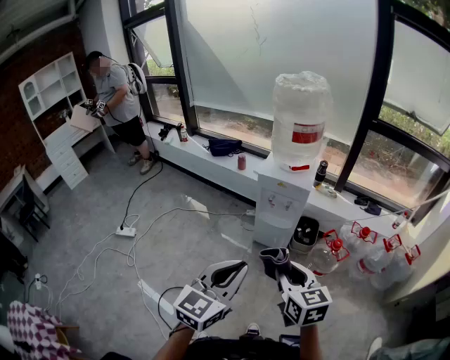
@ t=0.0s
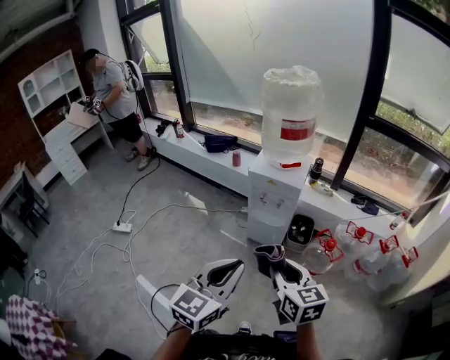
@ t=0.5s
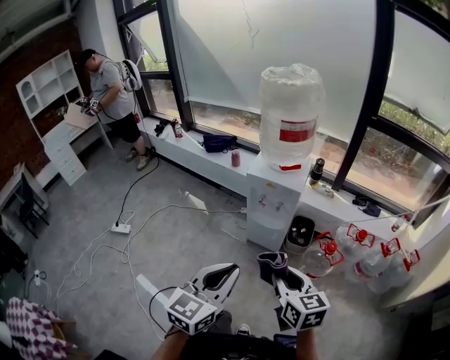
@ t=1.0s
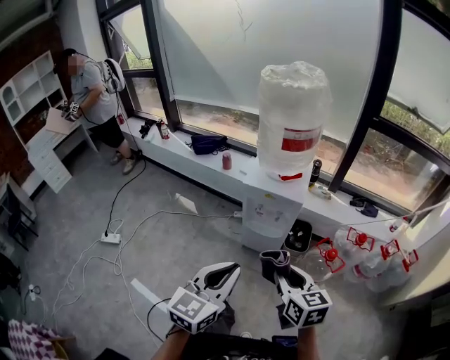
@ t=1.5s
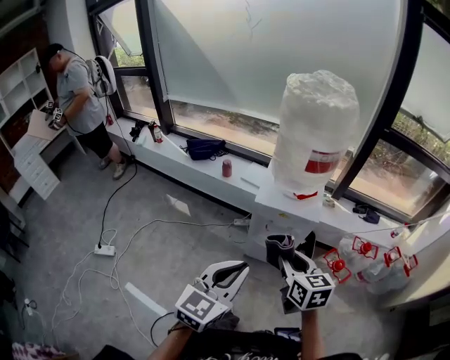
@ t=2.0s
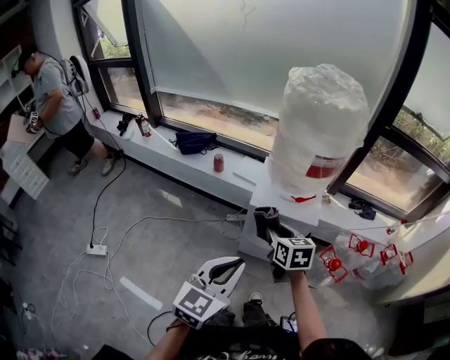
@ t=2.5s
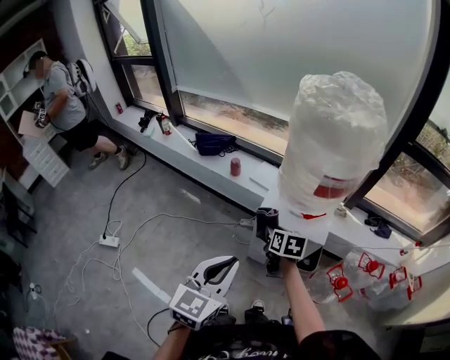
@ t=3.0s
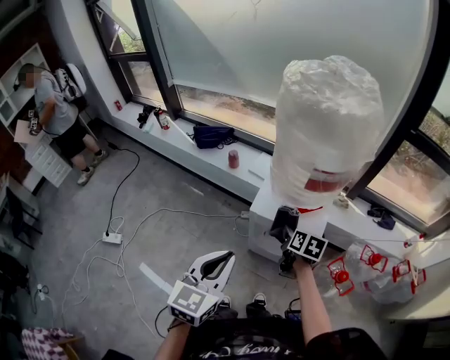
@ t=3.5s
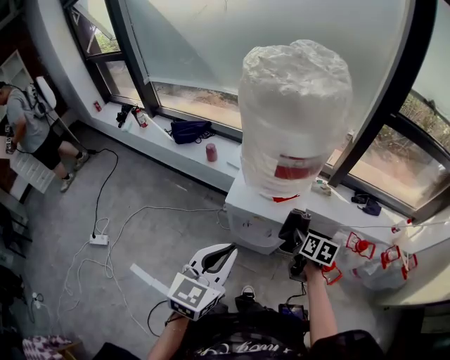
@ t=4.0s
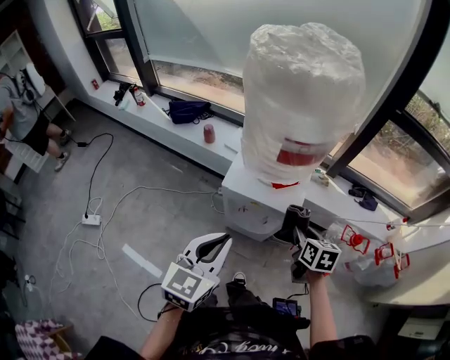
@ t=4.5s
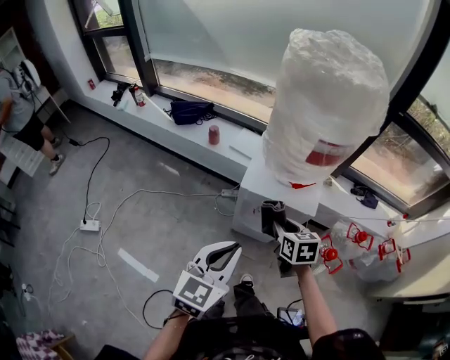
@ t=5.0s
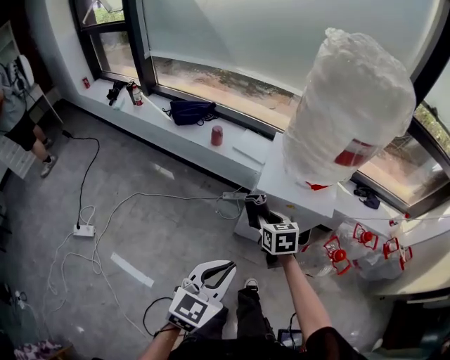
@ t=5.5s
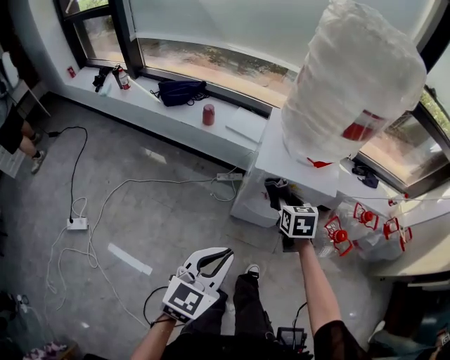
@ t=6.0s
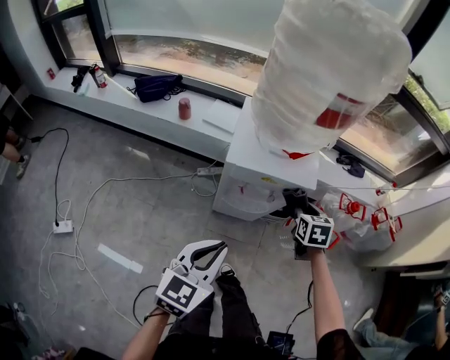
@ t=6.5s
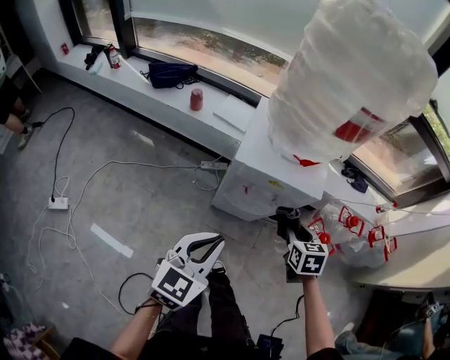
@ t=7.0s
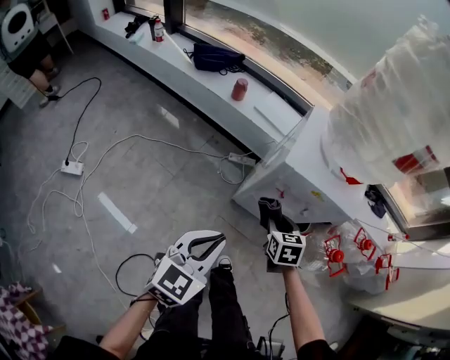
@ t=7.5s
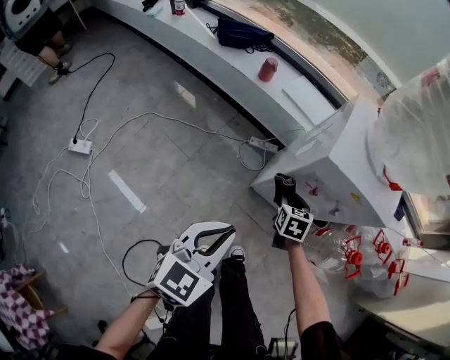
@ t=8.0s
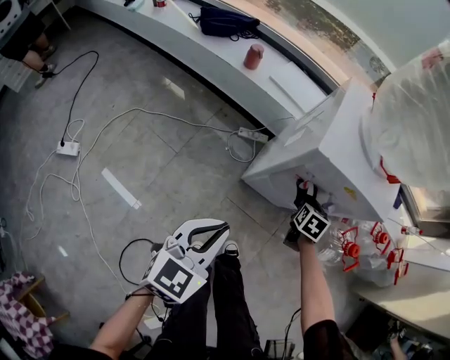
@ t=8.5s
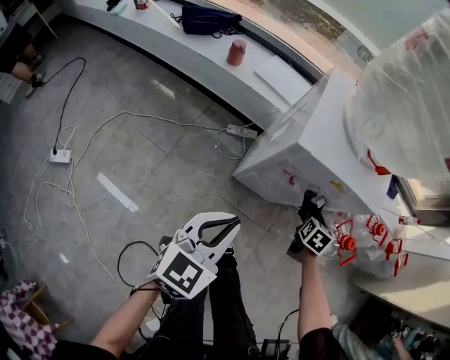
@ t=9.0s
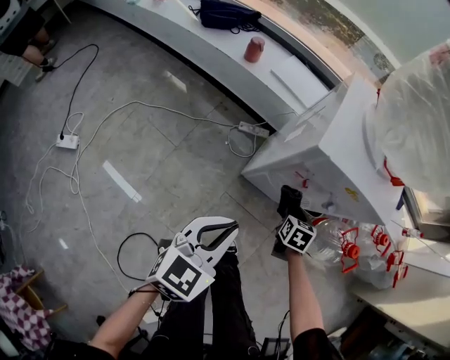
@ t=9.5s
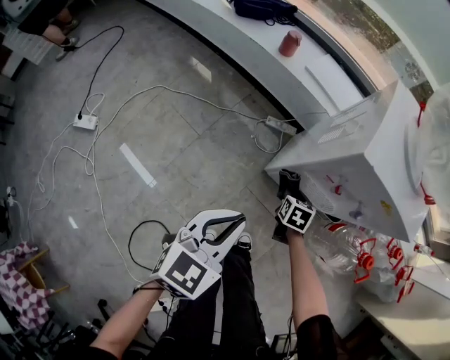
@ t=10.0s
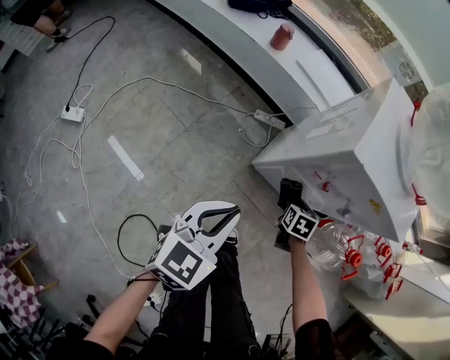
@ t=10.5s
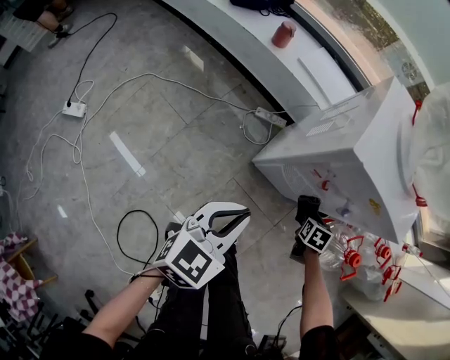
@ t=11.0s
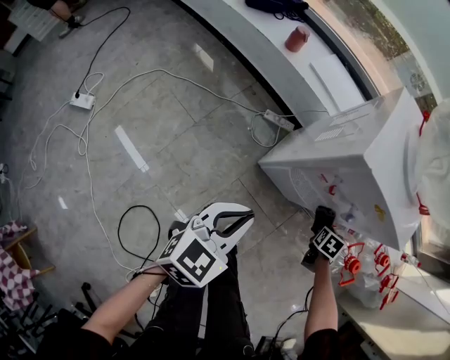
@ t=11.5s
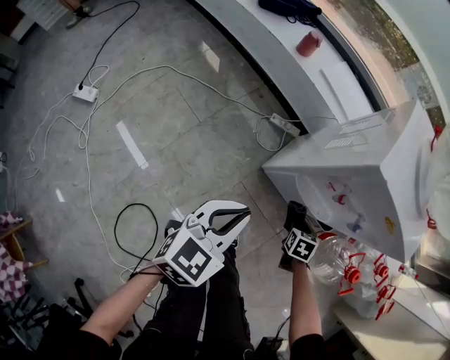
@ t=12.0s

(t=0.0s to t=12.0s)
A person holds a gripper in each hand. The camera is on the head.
t=0.0s - t=2.0s: The grippers both shift forward by about 30 cm.
t=2.0s - t=4.0s: The right gripper is displaced forward, to the right and downward by roughly 30 cm, and turns by roughly 30 degrees. Meanwhile the left gripper shifts roughly 15 cm forward and to the right.
t=4.0s - t=6.0s: The right gripper shifts approximately 20 cm to the left and downward, and turns by approximately 30 degrees, while the left gripper heads downward, to the left and backward, covering roughly 20 cm.
t=6.0s - t=8.0s: The left gripper travels downward and to the left by approximately 15 cm. Meanwhile the right gripper travels downward by approximately 20 cm, and moves about 15 cm to the right and comes back.
t=8.0s - t=10.0s: The left gripper is displaced downward by approximately 5 cm; the right gripper shifts roughly 10 cm downward, and moves some 20 cm to the right and comes back.
t=10.0s - t=12.0s: The right gripper heads to the right, covering some 10 cm.

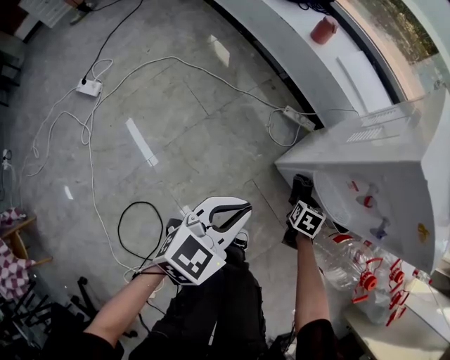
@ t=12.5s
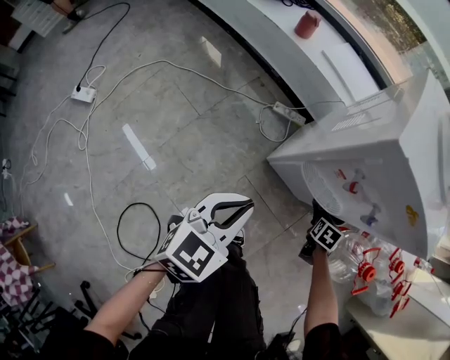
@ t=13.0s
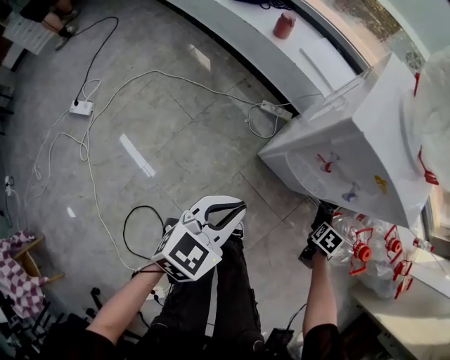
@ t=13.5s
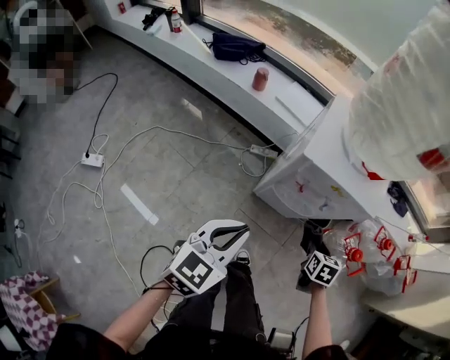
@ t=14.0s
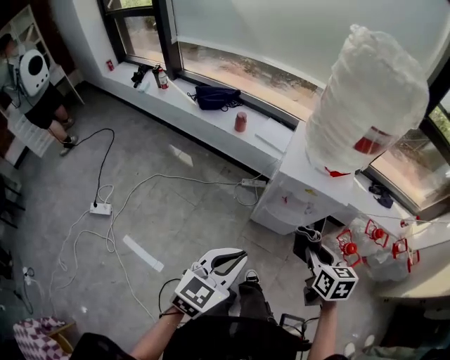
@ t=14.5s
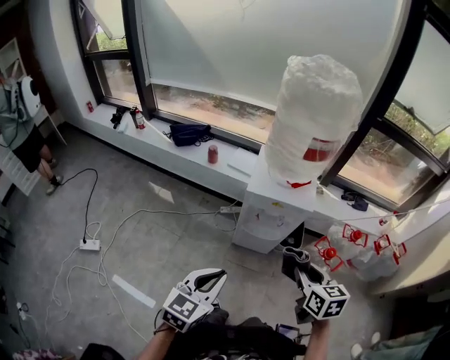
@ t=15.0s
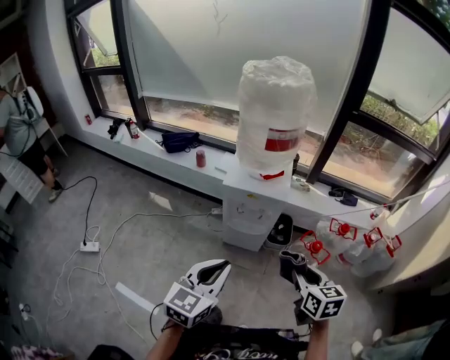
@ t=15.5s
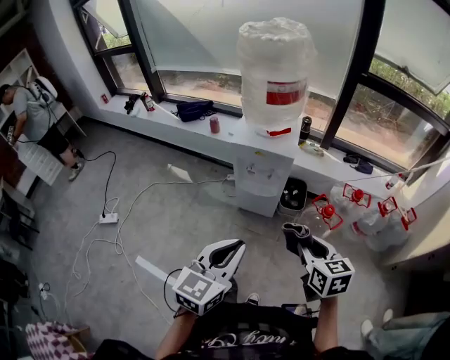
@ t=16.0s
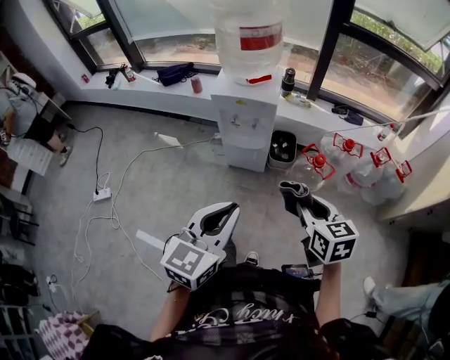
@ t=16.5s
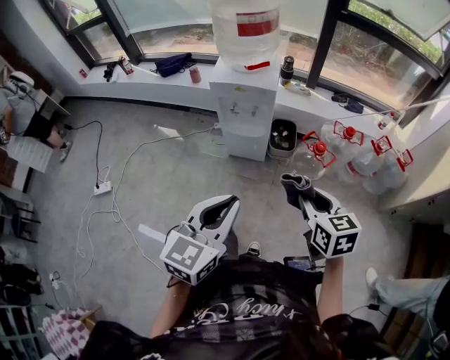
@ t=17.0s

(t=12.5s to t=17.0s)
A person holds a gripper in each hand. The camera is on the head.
t=12.5s - t=14.5s: The two grippers go some 40 cm upward. The right gripper changes its angle by approximately 30 degrees.
t=14.5s - t=17.0s: The right gripper shifts approximately 35 cm backward and to the right; the left gripper is displaced to the right and backward by approximately 35 cm.

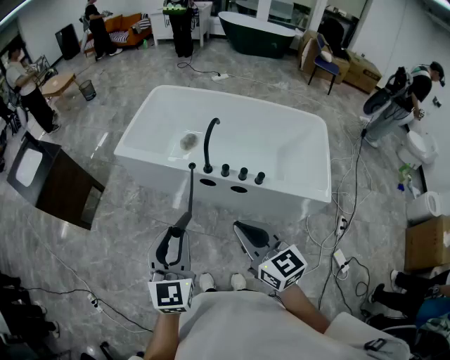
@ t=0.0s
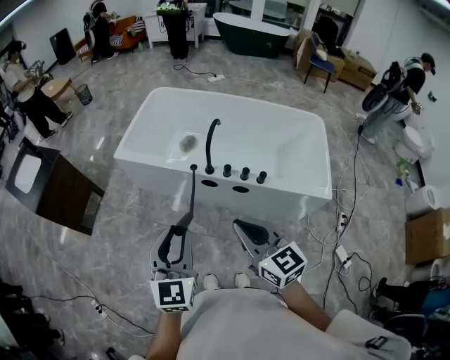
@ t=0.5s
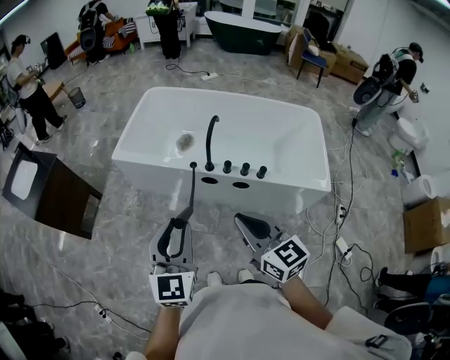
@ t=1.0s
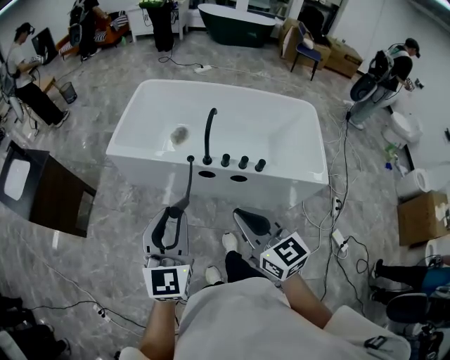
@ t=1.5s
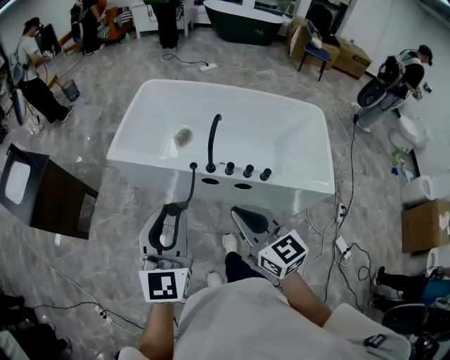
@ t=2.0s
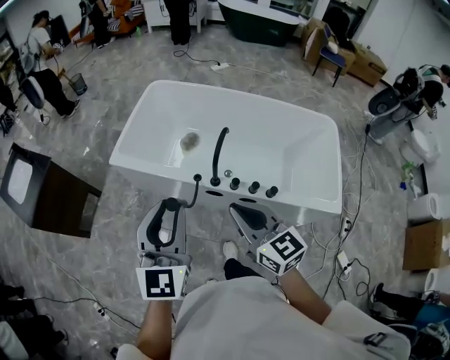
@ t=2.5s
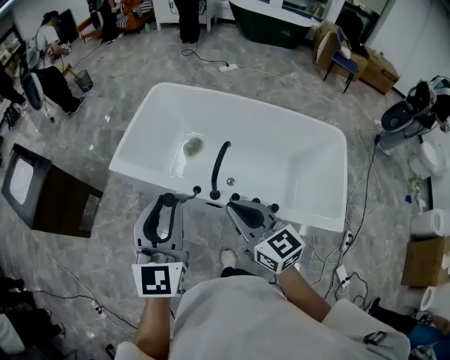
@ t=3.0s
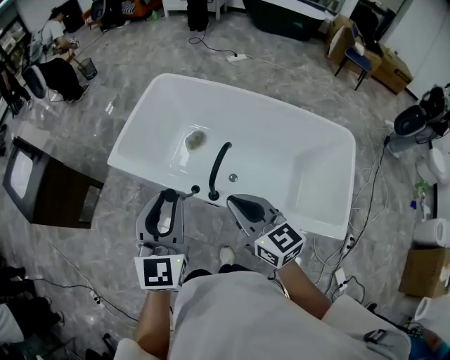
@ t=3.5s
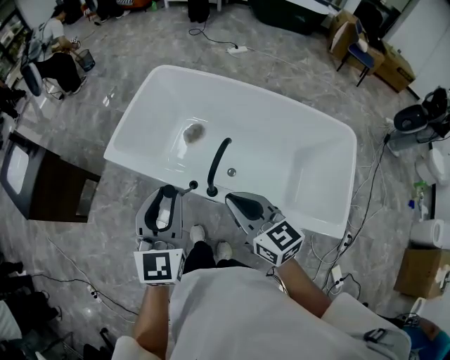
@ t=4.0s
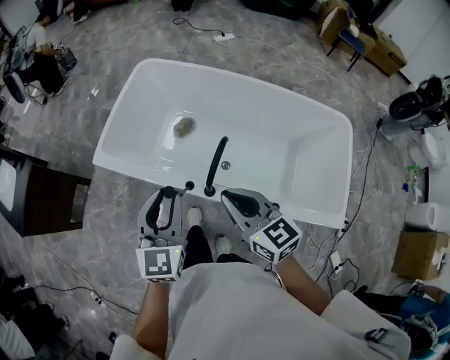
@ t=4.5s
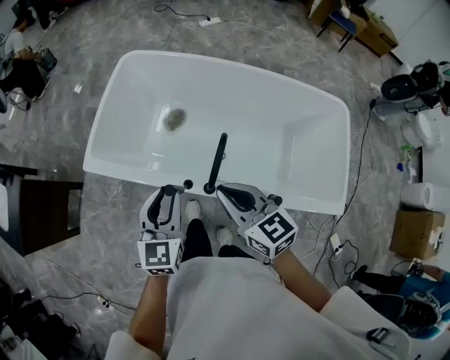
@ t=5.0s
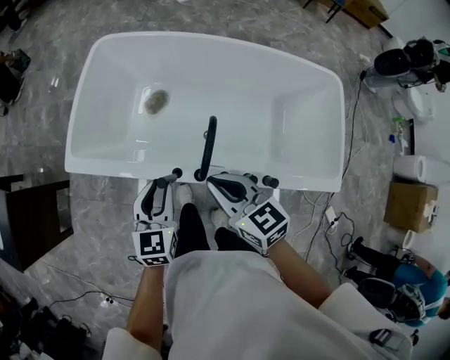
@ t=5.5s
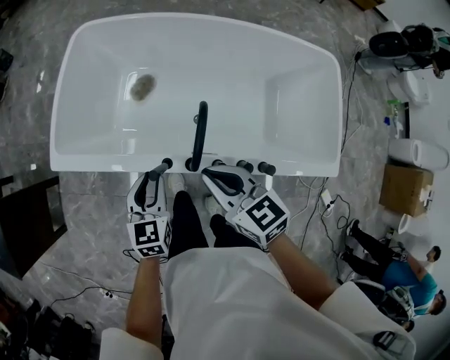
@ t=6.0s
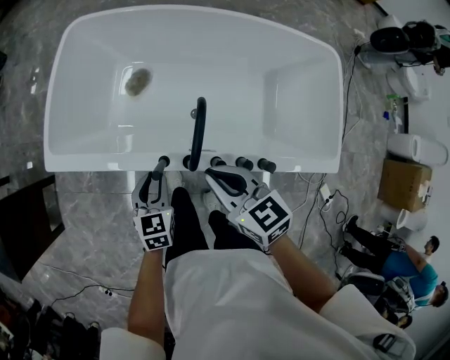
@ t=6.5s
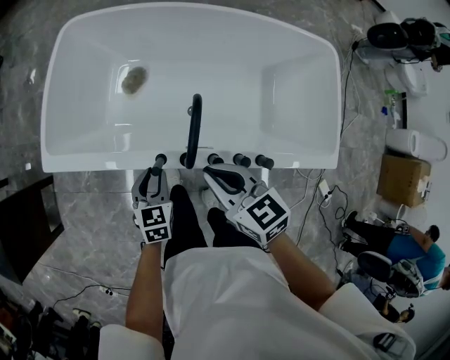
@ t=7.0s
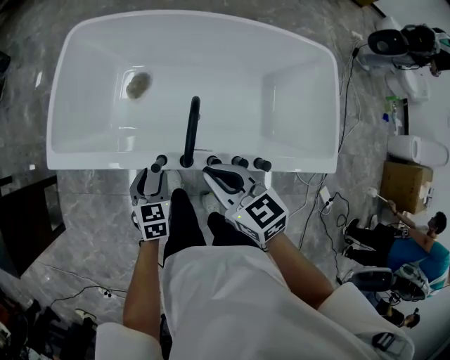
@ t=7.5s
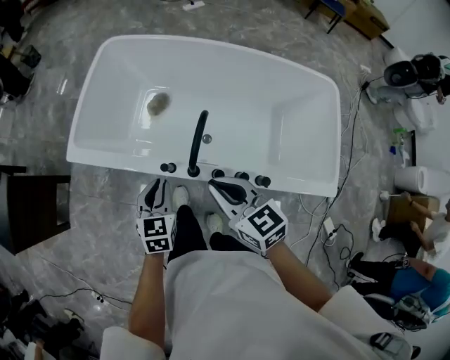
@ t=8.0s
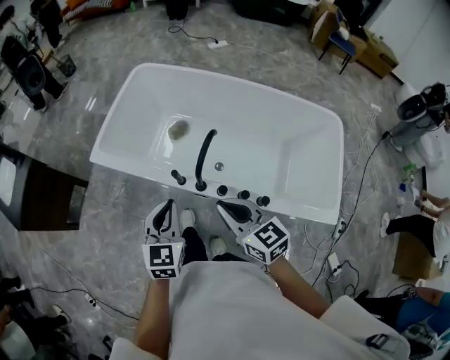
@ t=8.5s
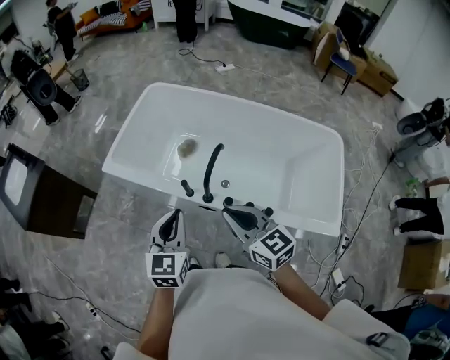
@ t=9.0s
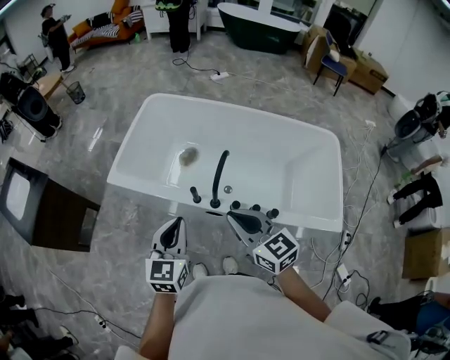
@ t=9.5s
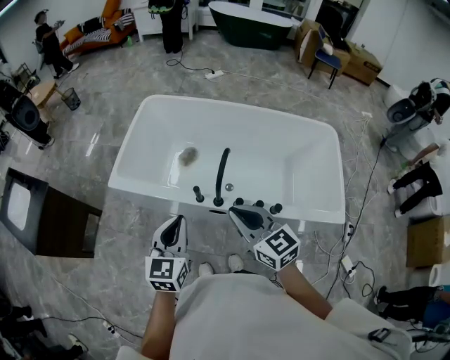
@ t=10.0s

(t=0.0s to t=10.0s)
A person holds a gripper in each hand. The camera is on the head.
t=0.0s - t=2.0s: The right gripper goes roughly 10 cm forward and to the left. The left gripper travels forward by some 10 cm.
t=2.0s - t=4.0s: The grippers both shift forward and to the right by approximately 25 cm.
t=4.0s - t=6.0s: The left gripper is displaced downward by approximately 25 cm, and rotates approximately 30 degrees. The right gripper heads downward and forward, covering approximately 15 cm.
t=6.0s - t=8.0s: The left gripper travels downward and back again, approximately 10 cm each way; the right gripper changes place by some 5 cm.
t=8.0s - t=10.0s: The right gripper is displaced upward and backward by some 15 cm. The left gripper heads upward and backward, covering about 20 cm.
